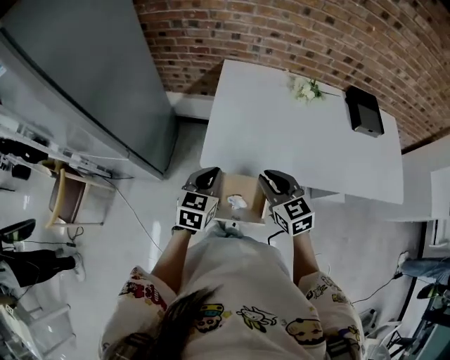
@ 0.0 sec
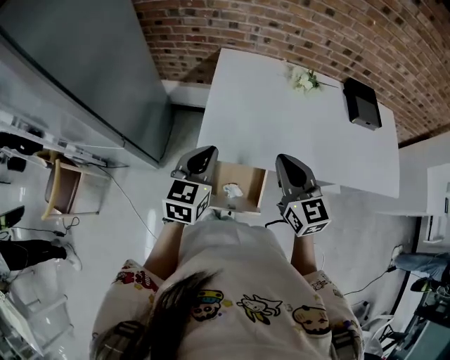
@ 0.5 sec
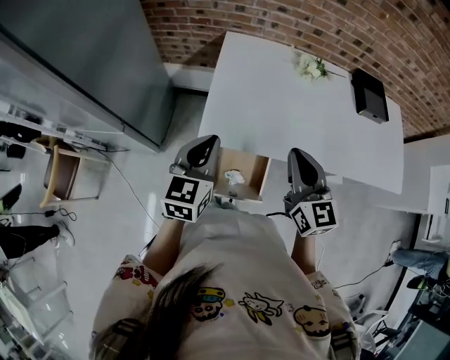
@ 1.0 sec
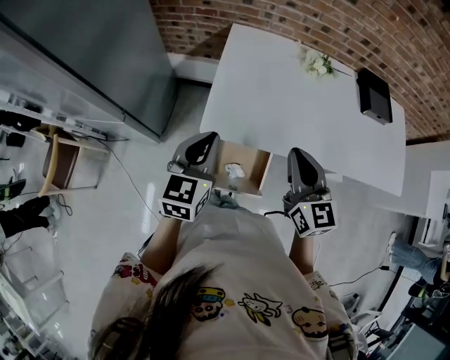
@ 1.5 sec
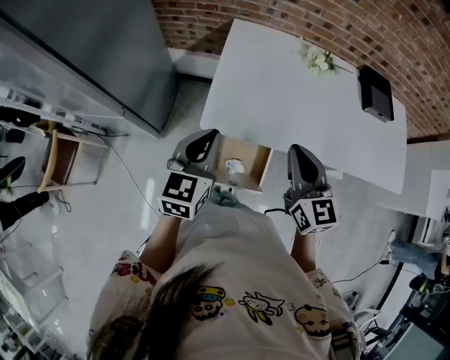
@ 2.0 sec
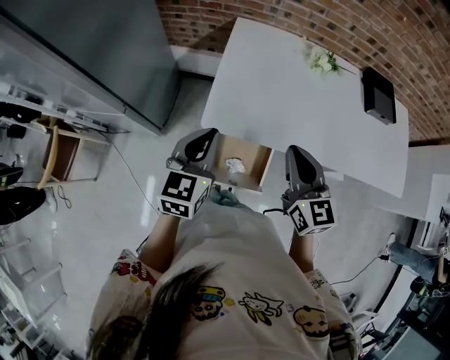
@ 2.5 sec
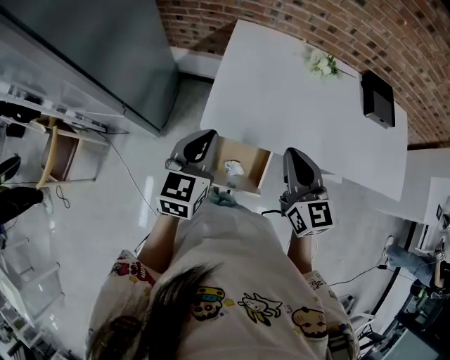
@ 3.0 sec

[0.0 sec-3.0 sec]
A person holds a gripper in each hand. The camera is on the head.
0.0 sec to 1.5 sec: Both grippers travel together upward, approximately 10 cm. The right gripper turns by about 20 degrees.
1.5 sec to 3.0 sec: The grippers stay close to where they were, moving slightly.

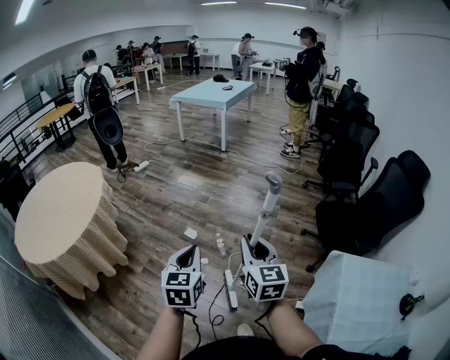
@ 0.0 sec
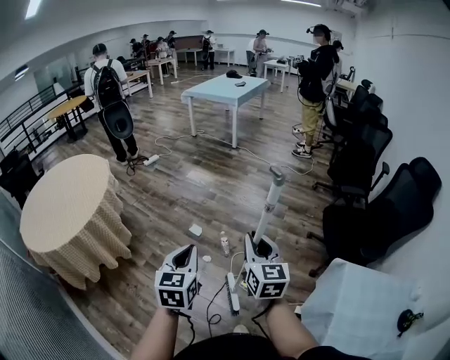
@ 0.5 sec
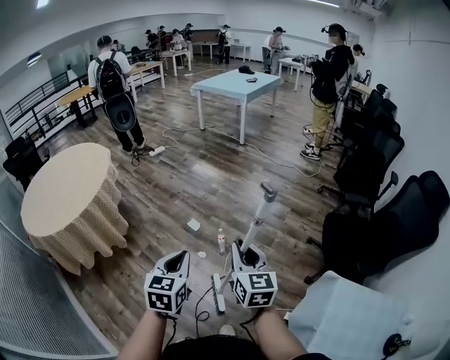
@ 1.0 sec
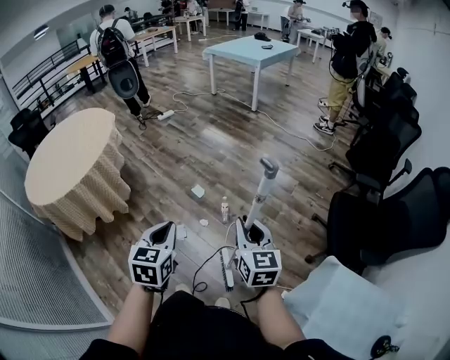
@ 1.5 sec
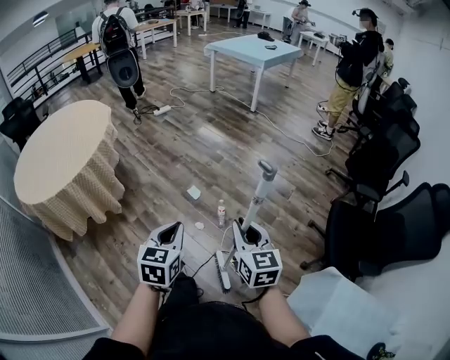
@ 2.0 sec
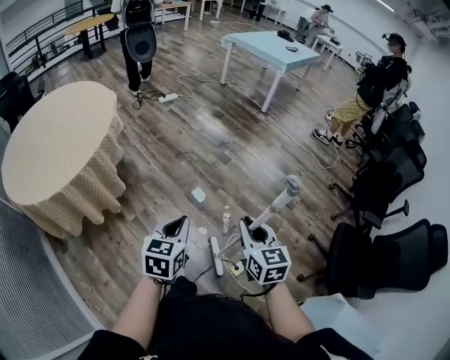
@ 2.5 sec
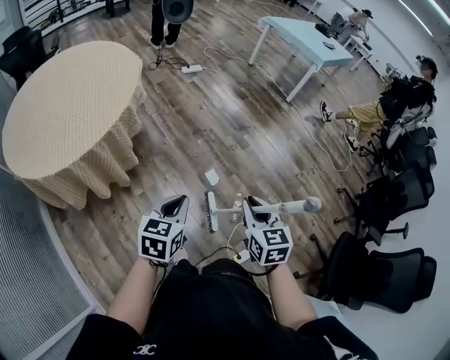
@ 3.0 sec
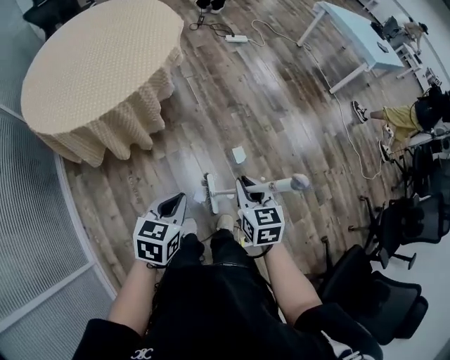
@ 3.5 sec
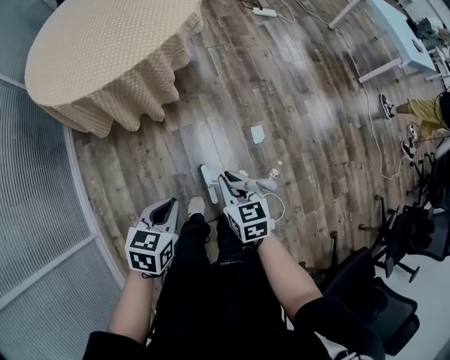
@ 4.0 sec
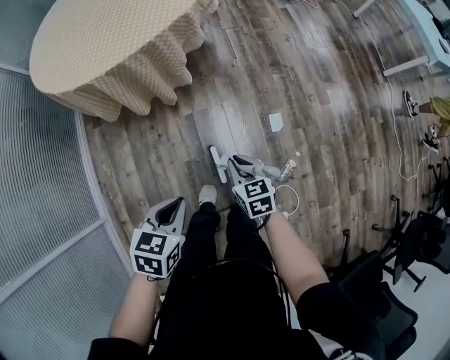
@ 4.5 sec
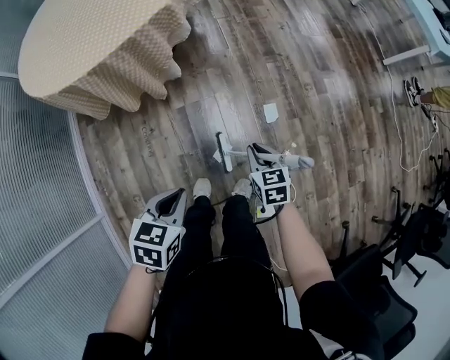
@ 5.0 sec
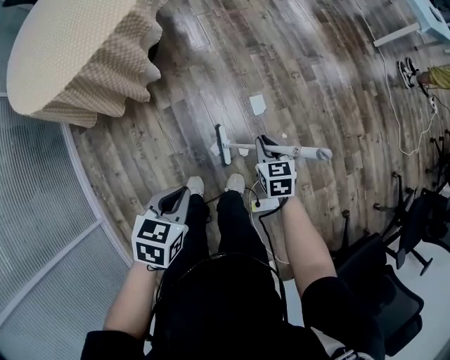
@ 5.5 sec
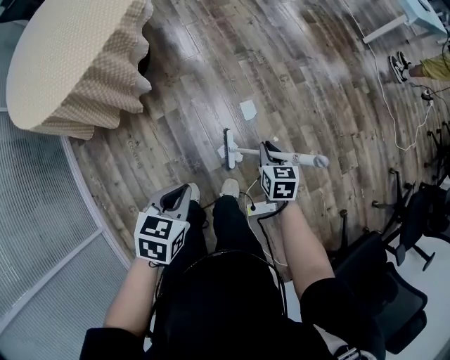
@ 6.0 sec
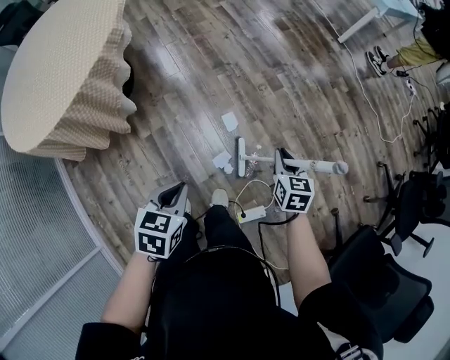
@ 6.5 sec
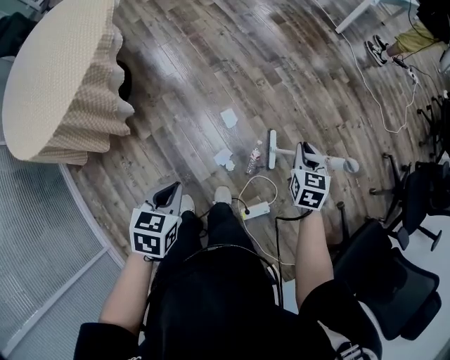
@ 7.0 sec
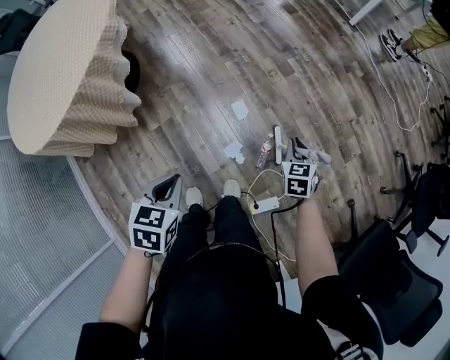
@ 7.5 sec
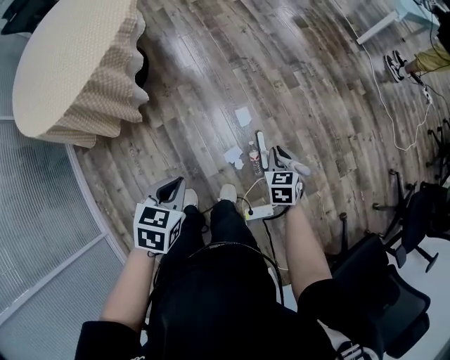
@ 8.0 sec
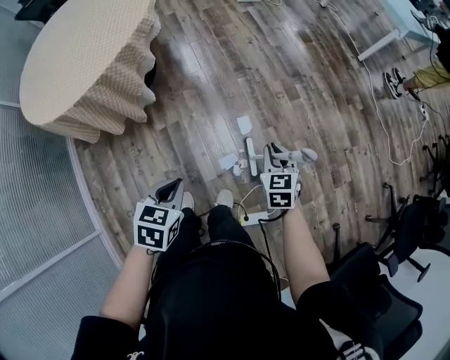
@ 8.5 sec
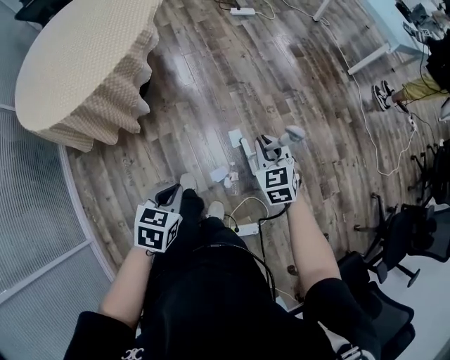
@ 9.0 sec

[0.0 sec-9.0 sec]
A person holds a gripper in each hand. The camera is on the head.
0.0 sec to 2.0 sec: The right gripper travels forward and downward by some 15 cm; the left gripper shifts approximately 10 cm downward and forward.
2.0 sec to 4.5 sec: The right gripper shifts by approximately 60 cm, and changes its angle by approximately 60 degrees. Meanwhile the left gripper changes place by roughly 35 cm, and swivels approximately 40 degrees.
4.5 sec to 7.0 sec: The right gripper moves some 50 cm, and turns by about 50 degrees. Meanwhile the left gripper changes place by about 25 cm.
7.0 sec to 9.0 sec: The right gripper shifts approximately 20 cm to the left, and turns by approximately 40 degrees.

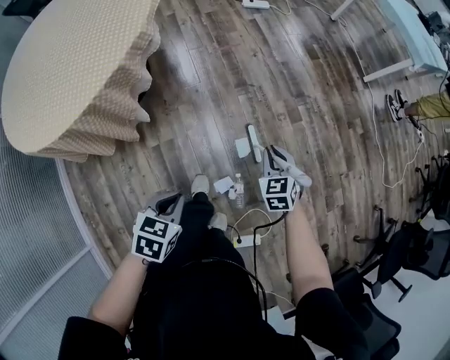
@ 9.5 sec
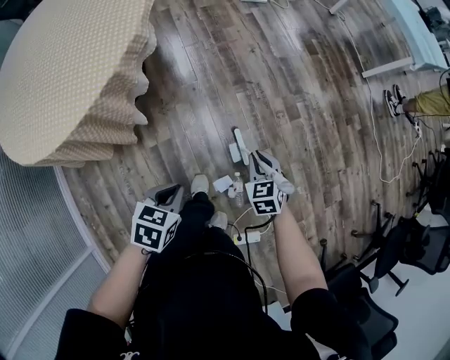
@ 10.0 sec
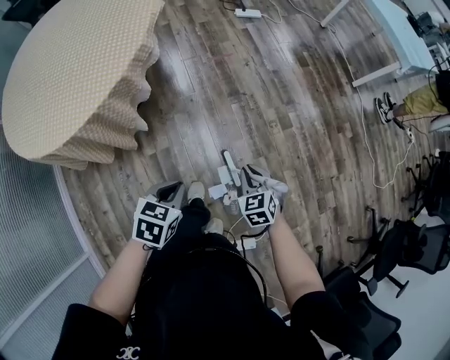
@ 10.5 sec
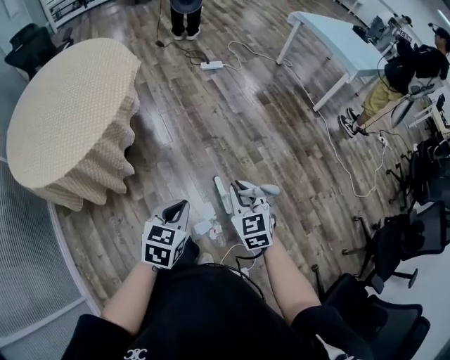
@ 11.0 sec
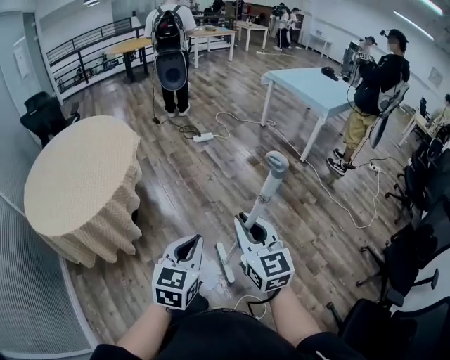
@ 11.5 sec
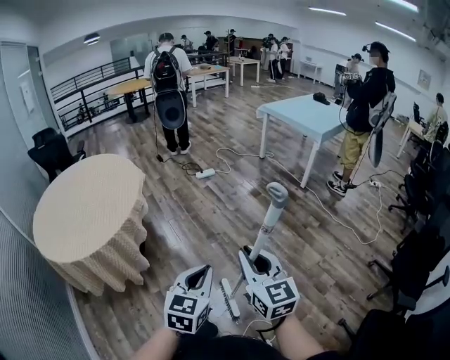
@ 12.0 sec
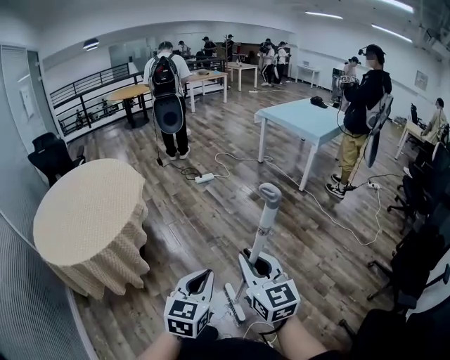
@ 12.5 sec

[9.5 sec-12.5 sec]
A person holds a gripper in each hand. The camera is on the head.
9.5 sec to 11.0 sec: The right gripper goes about 20 cm upward and backward, while the left gripper heads upward and to the right, covering some 15 cm, and swivels about 20 degrees.
11.0 sec to 12.5 sec: The right gripper heads upward and backward, covering roughly 25 cm, and rotates about 30 degrees. The left gripper shifts some 20 cm upward, to the right and backward, and rotates about 20 degrees.

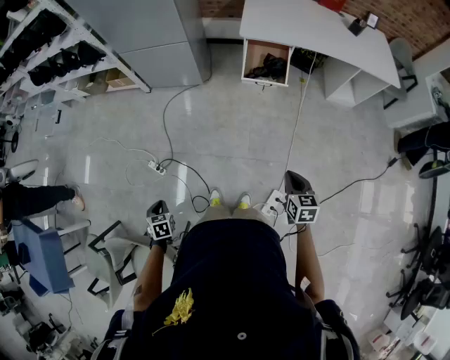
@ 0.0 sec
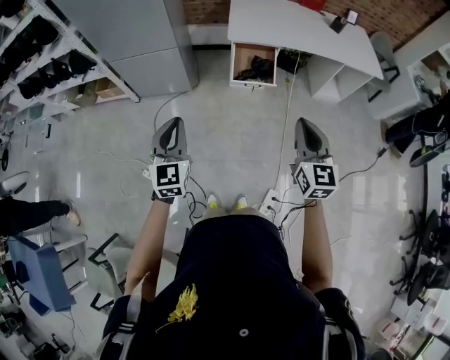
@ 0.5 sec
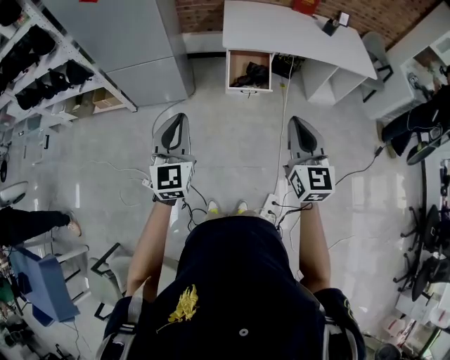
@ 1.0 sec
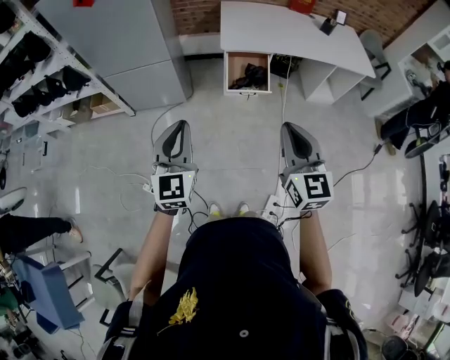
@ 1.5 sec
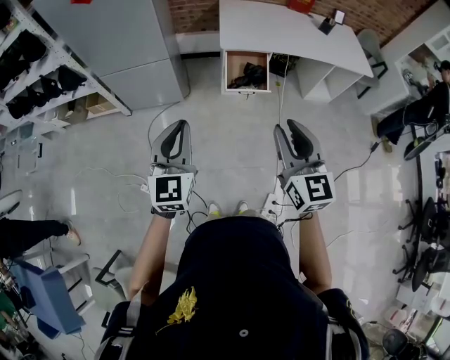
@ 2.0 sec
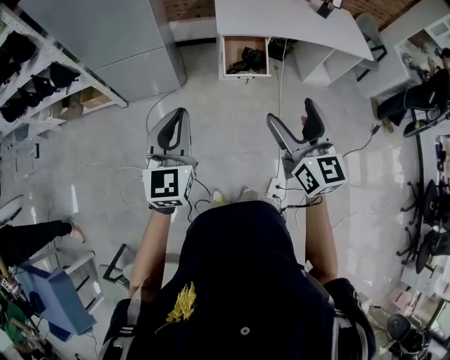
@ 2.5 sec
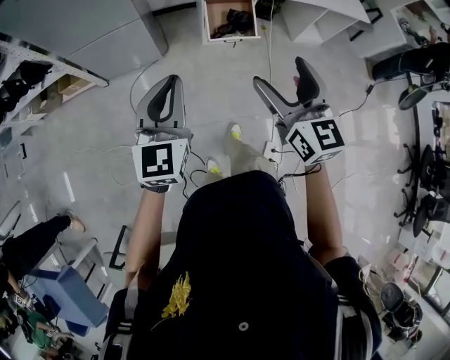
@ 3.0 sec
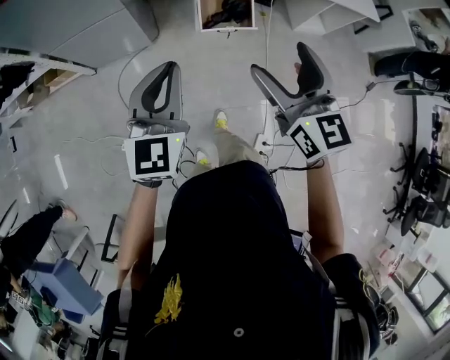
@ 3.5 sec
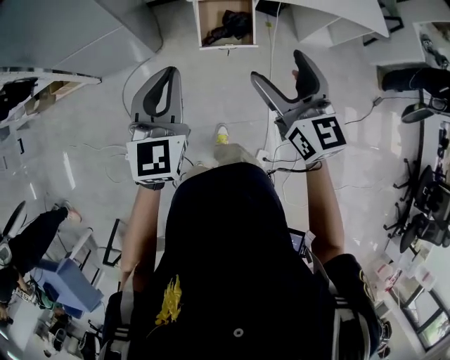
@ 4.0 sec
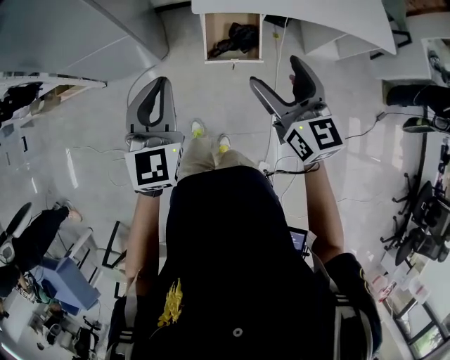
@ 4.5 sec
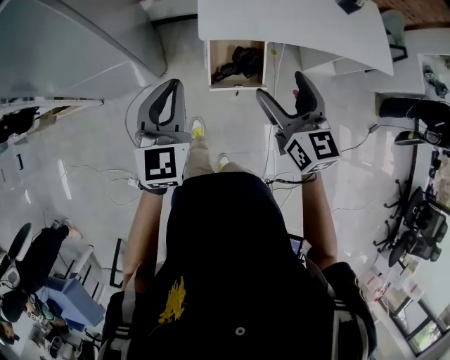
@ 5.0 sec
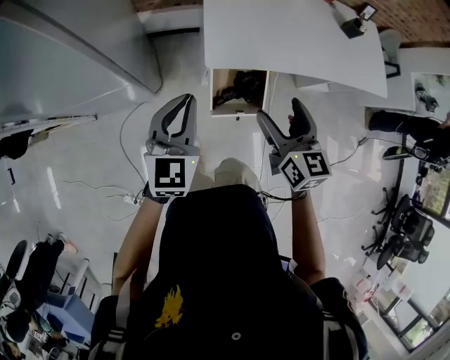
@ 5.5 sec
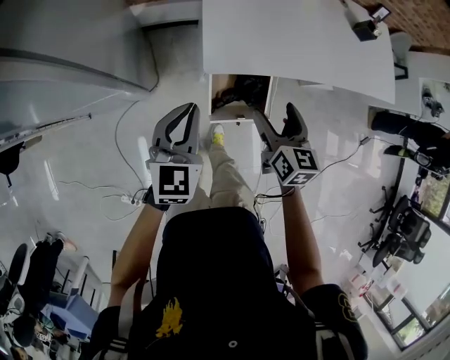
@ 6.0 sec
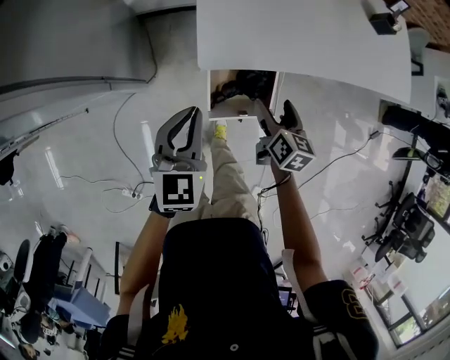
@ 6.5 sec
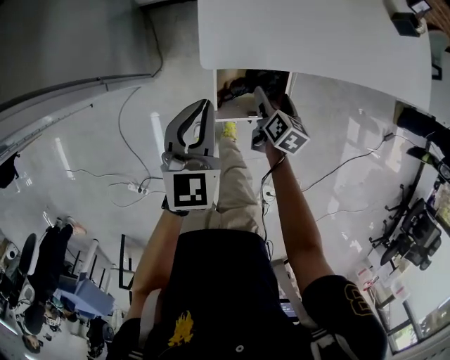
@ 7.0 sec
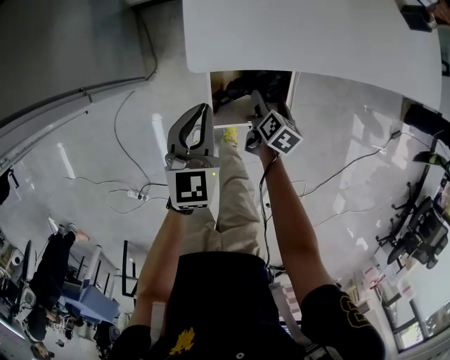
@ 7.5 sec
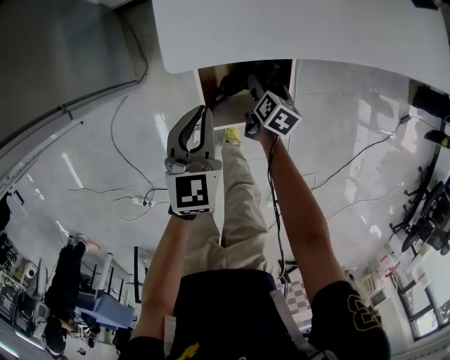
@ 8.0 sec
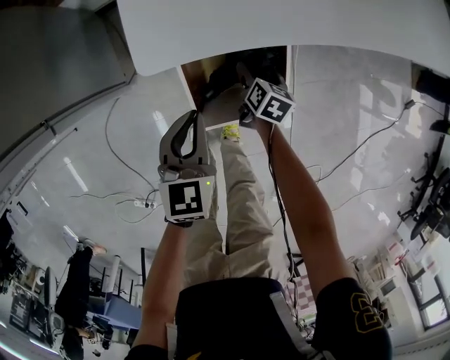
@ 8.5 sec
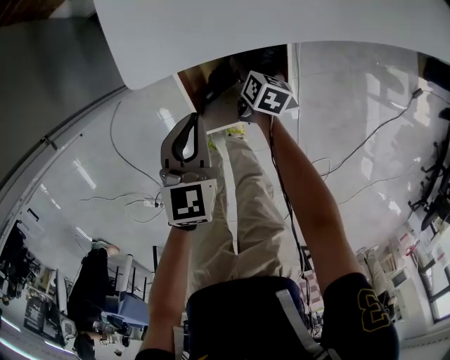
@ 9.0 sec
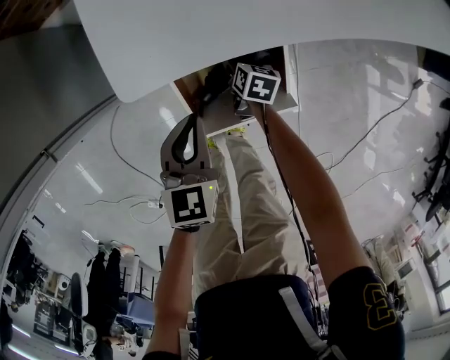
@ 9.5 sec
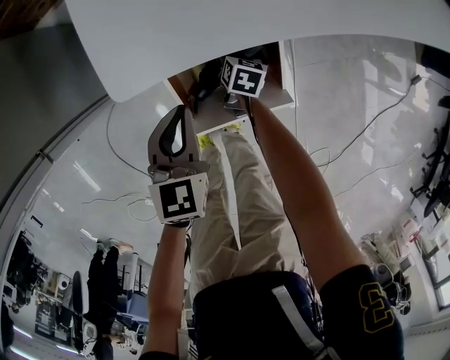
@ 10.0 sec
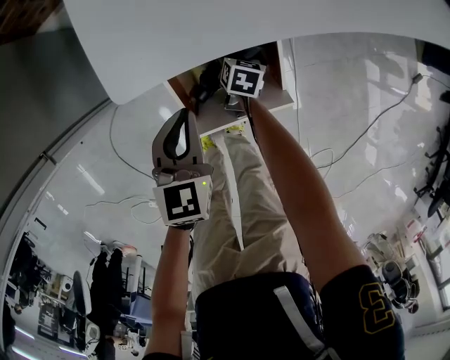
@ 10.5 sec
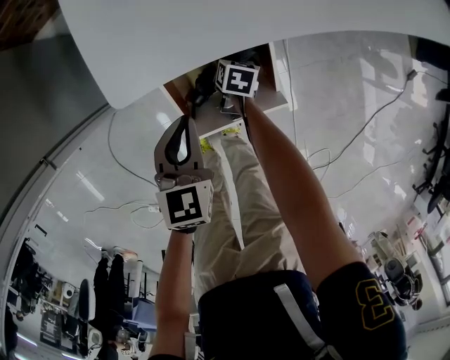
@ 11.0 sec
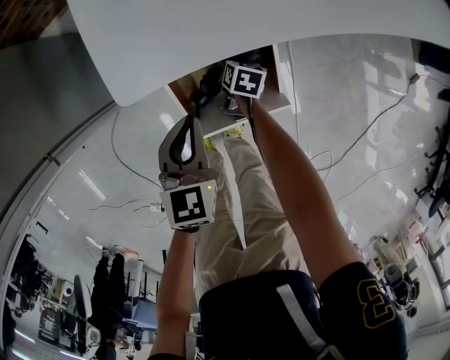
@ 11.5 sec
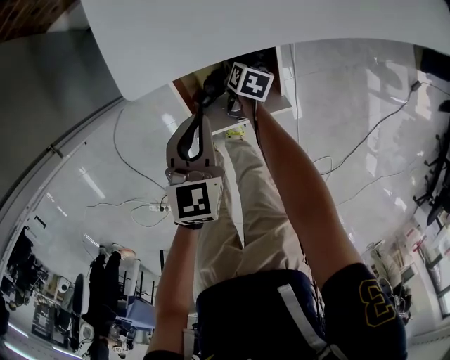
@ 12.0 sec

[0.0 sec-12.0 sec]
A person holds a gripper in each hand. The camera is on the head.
0.0 sec to 2.0 sec: The left gripper heads upward and forward, covering some 50 cm, and tips its fingers upward by roughly 60 degrees. Meanwhile the right gripper travels upward and to the left by roughly 30 cm, and points its fingers approximately 30 degrees further upward.
2.0 sec to 4.0 sec: The left gripper heads forward and to the right, covering approximately 25 cm. Meanwhile the right gripper travels forward by roughly 25 cm, and opens up.
4.0 sec to 6.0 sec: The left gripper goes roughly 35 cm forward. The right gripper is displaced forward and downward by approximately 40 cm, and swivels some 30 degrees.
6.0 sec to 8.0 sec: The right gripper goes approximately 40 cm downward, and turns by roughly 40 degrees, while the left gripper shifts about 25 cm downward.
8.0 sec to 10.0 sec: The right gripper travels downward and forward by approximately 10 cm. Meanwhile the left gripper moves downward, approximately 5 cm.
10.0 sec to 12.0 sec: The grippers move only a little.
